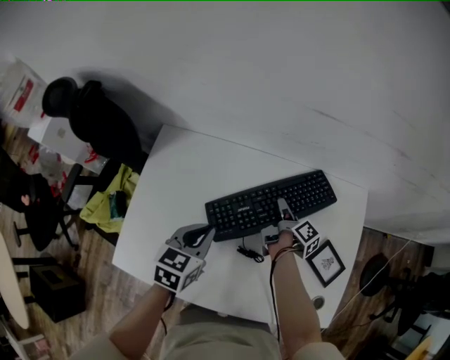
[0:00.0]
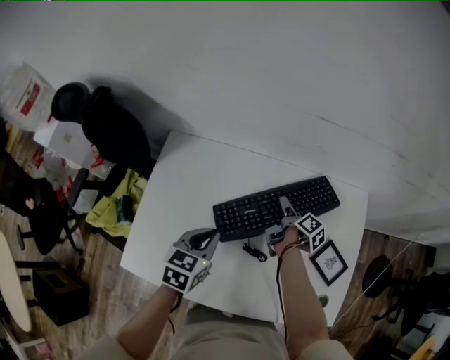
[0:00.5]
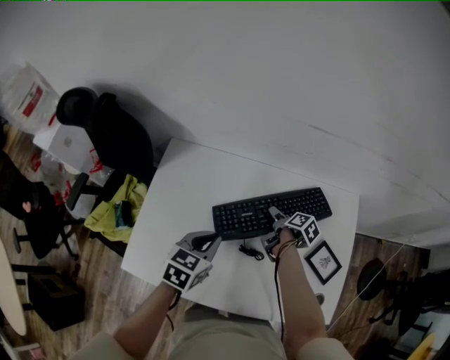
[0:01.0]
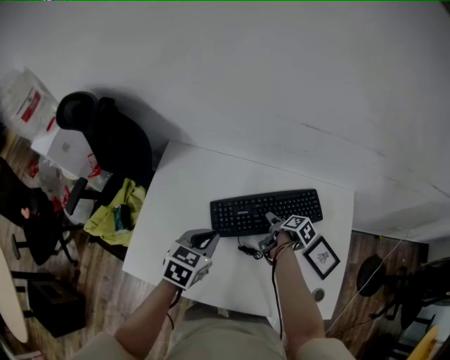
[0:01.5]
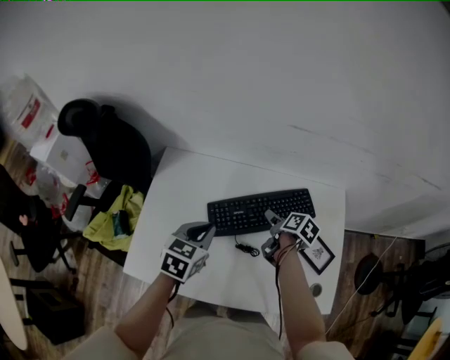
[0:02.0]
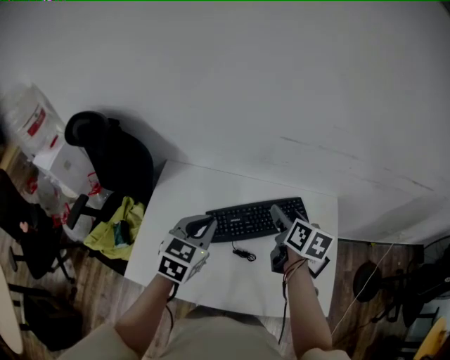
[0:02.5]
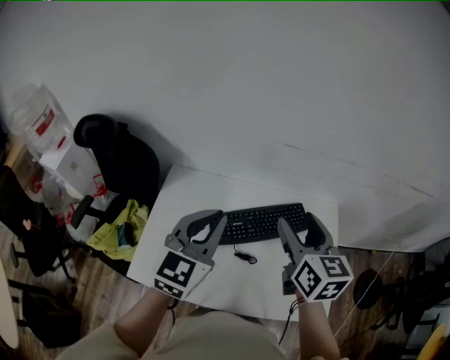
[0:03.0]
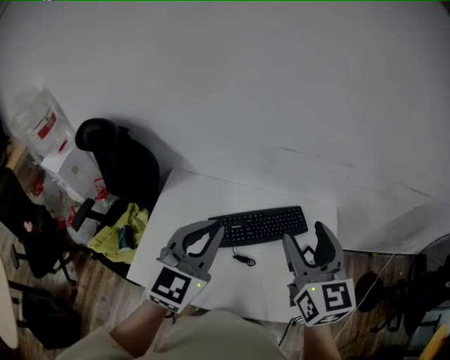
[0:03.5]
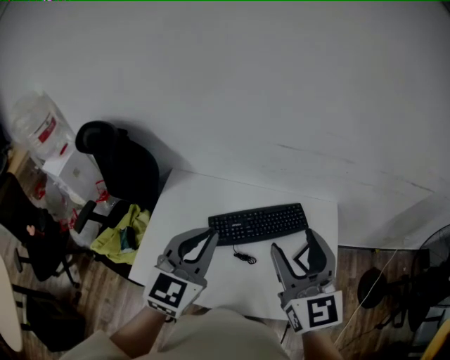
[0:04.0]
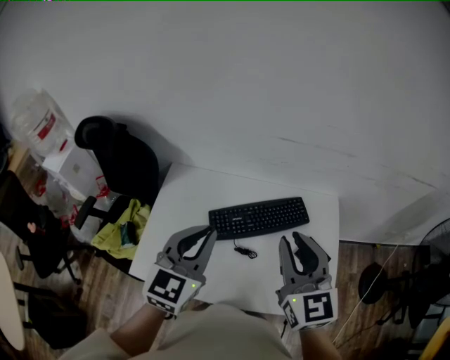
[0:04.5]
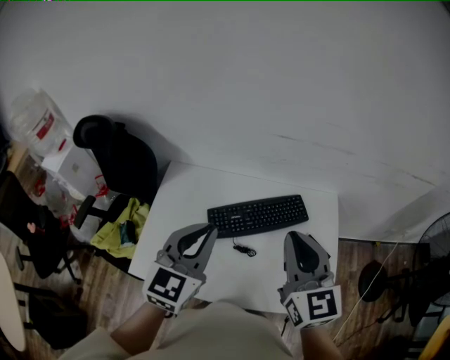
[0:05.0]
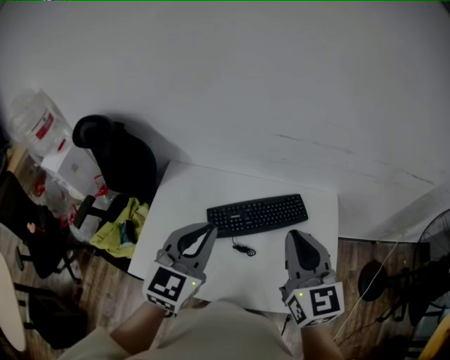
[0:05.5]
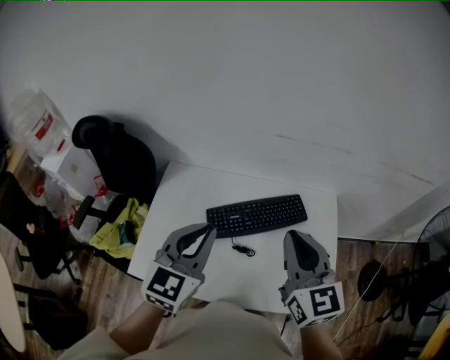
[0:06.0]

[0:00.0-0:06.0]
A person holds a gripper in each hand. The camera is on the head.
0:00.0 to 0:02.0: The right gripper is displaced upward and backward by some 10 cm, changes its angle by some 40 degrees, and opens its fingers. The left gripper is displaced upward by approximately 5 cm.
0:02.0 to 0:04.0: The left gripper is displaced upward by approximately 20 cm, and turns by about 30 degrees, while the right gripper shifts approximately 40 cm upward and backward, and twists roughly 70 degrees counterclockwise, seen from behind.
0:04.0 to 0:06.0: The right gripper closes.

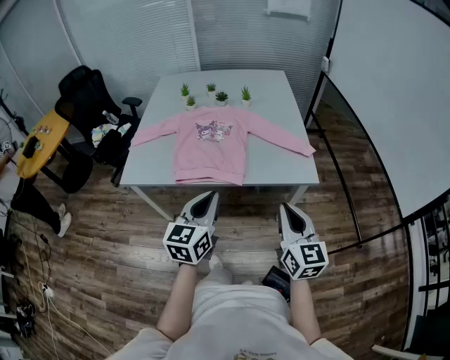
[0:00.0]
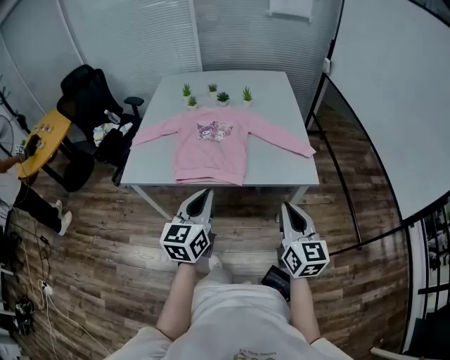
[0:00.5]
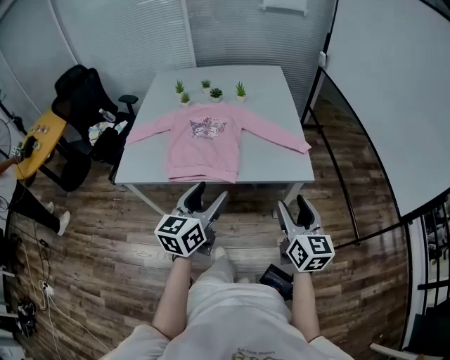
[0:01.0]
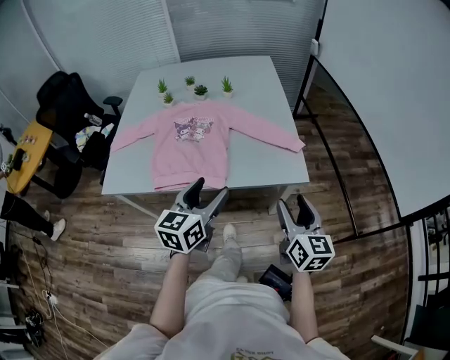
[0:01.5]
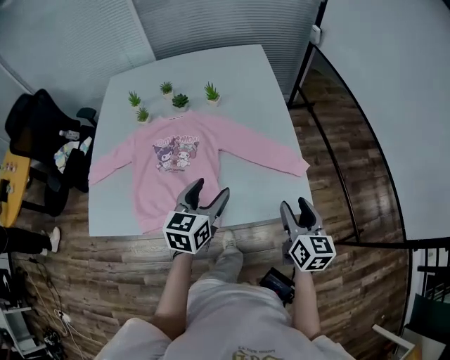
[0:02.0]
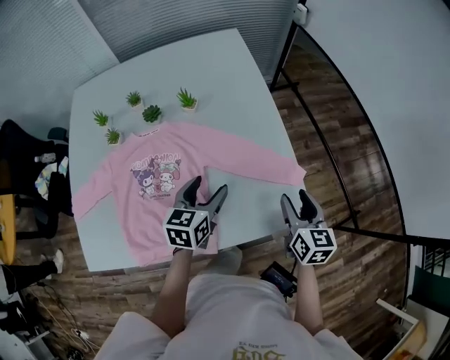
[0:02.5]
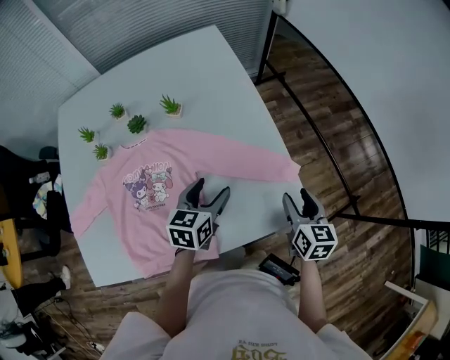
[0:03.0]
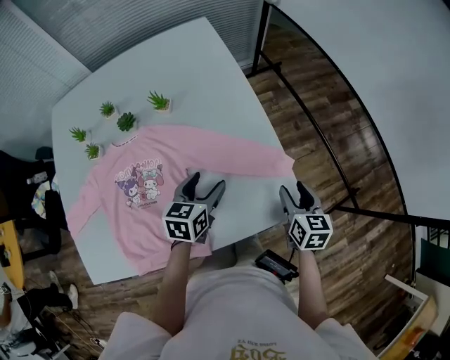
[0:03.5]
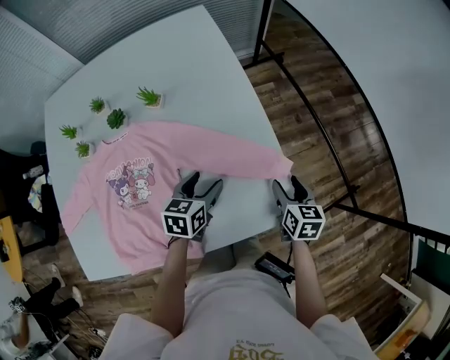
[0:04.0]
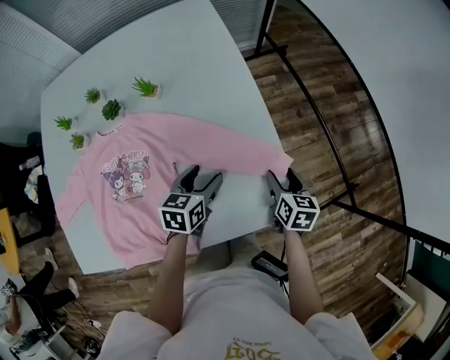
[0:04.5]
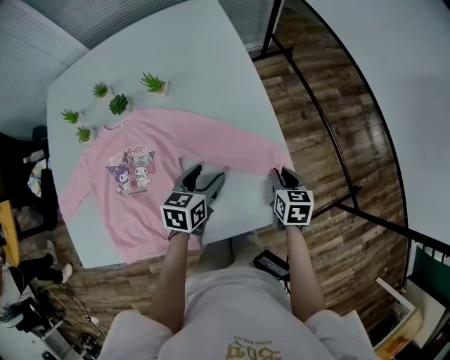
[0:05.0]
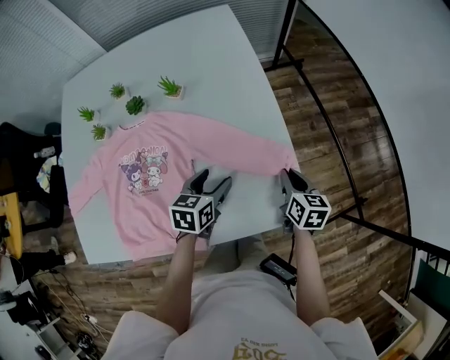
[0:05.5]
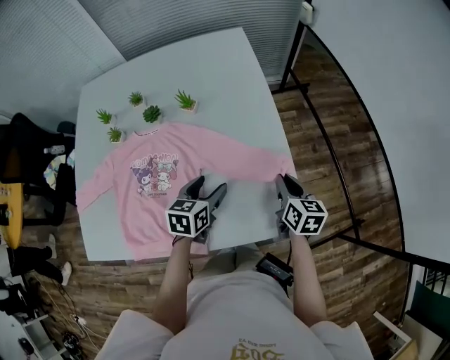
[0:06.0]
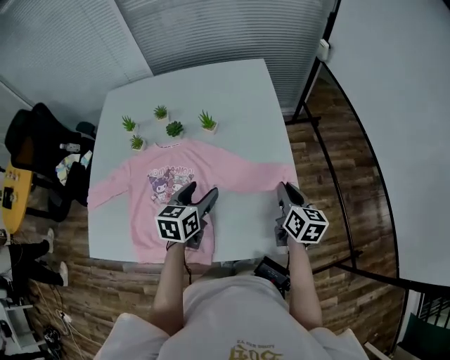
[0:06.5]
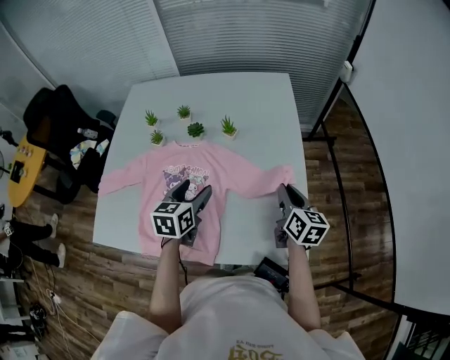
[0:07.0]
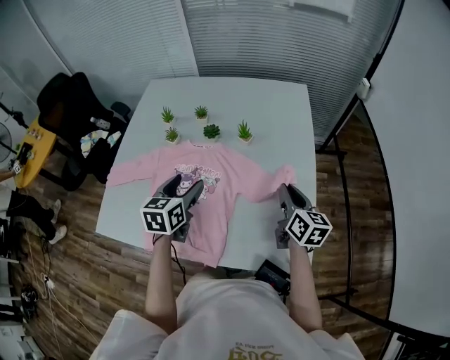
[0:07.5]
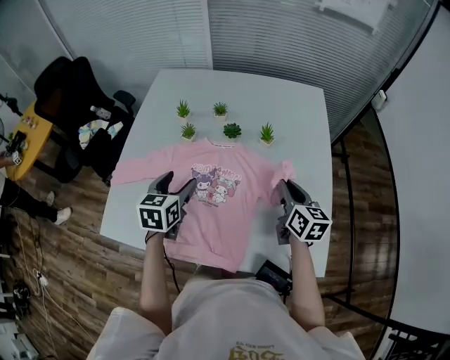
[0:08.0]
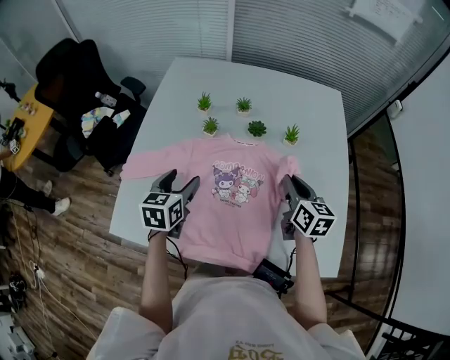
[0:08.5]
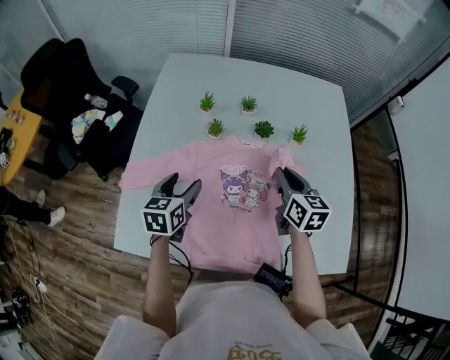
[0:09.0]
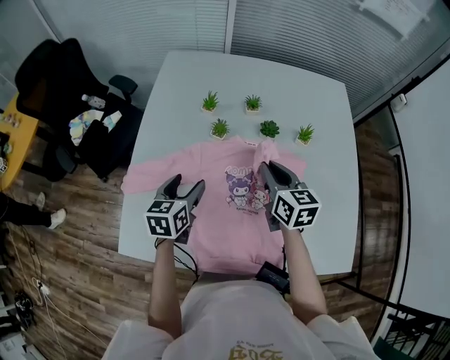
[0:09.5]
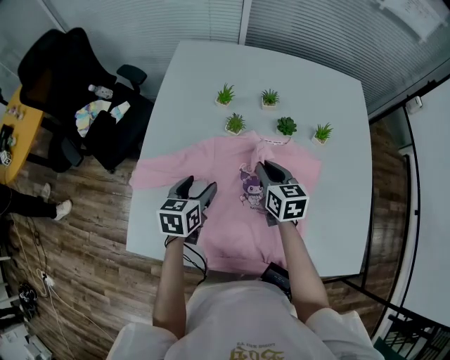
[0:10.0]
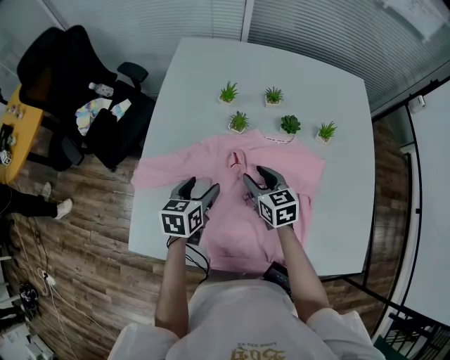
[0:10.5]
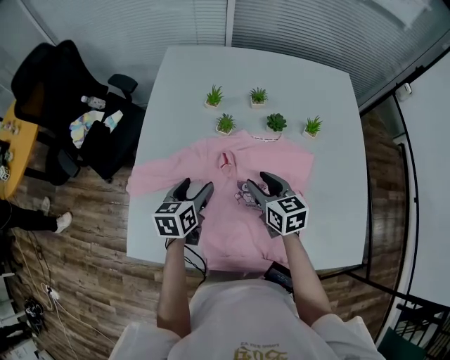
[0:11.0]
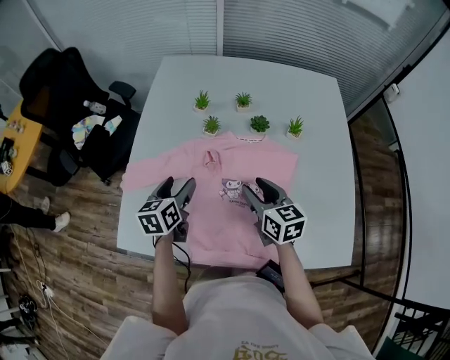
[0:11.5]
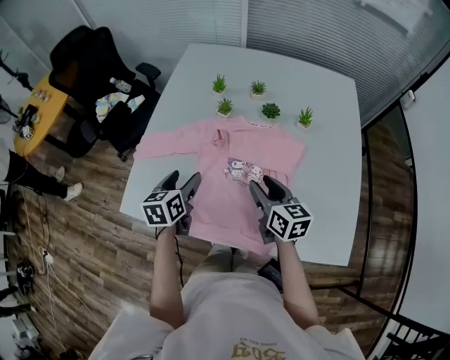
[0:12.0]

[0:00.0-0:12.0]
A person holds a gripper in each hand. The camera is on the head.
0:00.0 to 0:02.0: The left gripper goes some 30 cm forward, and opens. Meanwhile the right gripper travels forward and downward by roughly 30 cm, turns by some 20 degrees, and opens.
0:02.0 to 0:04.0: The grippers both shift forward and downward by roughly 20 cm. The left gripper changes its angle by some 20 degrees; the right gripper turns by about 20 degrees.
0:04.0 to 0:06.0: The right gripper goes some 10 cm upward and to the left, and closes up. Meanwhile the left gripper ends up about 5 cm from where it was.
0:06.0 to 0:08.0: The left gripper is displaced to the left by some 30 cm, and swivels some 30 degrees. The right gripper is displaced to the left, upward and forward by some 25 cm, and turns by about 20 degrees.
0:08.0 to 0:10.0: The right gripper goes some 30 cm to the left; the left gripper goes approximately 20 cm to the left and downward.
0:10.0 to 0:12.0: The left gripper is displaced backward and upward by roughly 10 cm. The right gripper is displaced backward by approximately 15 cm, and opens up.

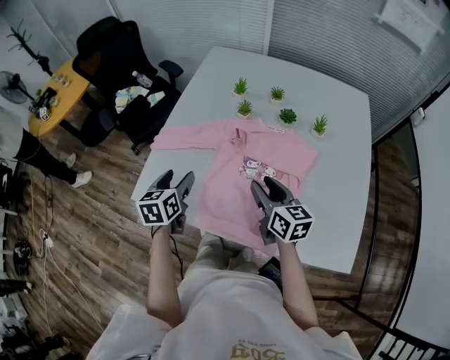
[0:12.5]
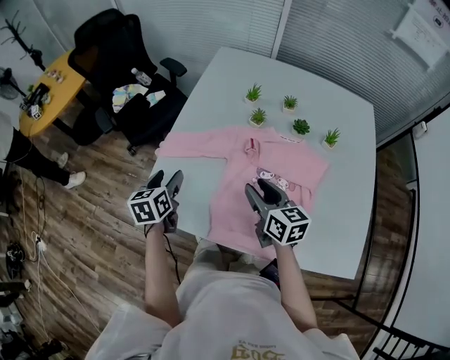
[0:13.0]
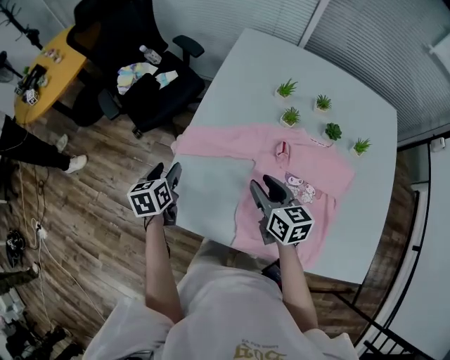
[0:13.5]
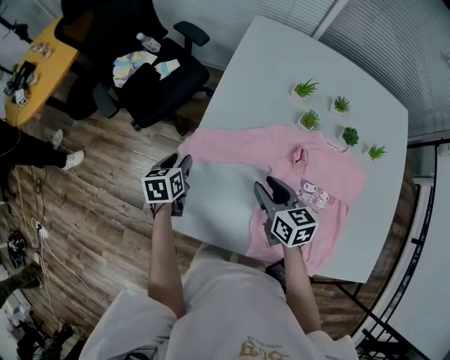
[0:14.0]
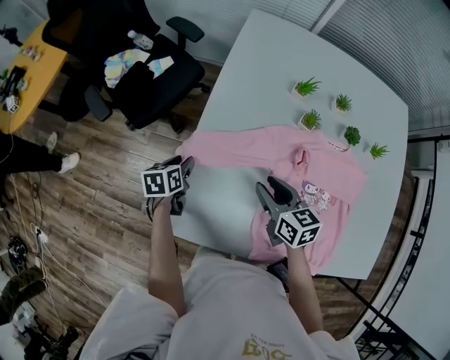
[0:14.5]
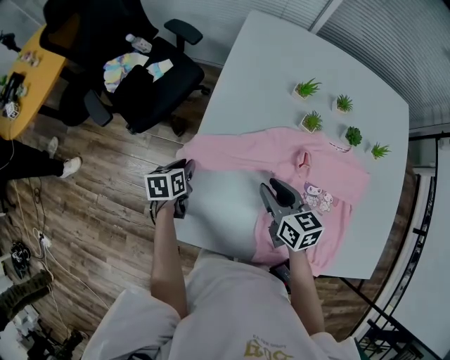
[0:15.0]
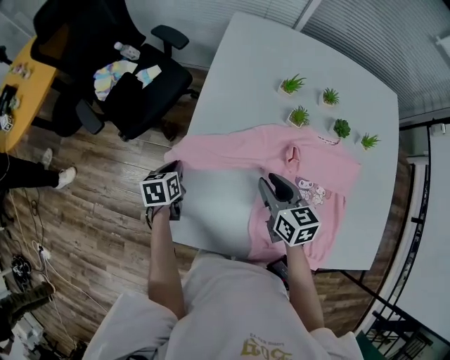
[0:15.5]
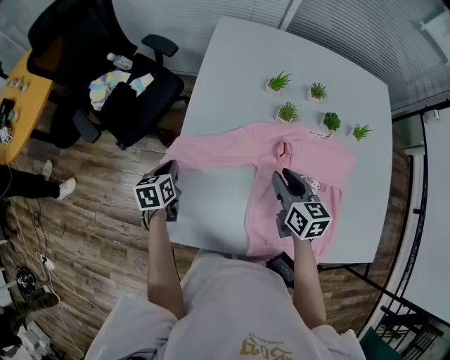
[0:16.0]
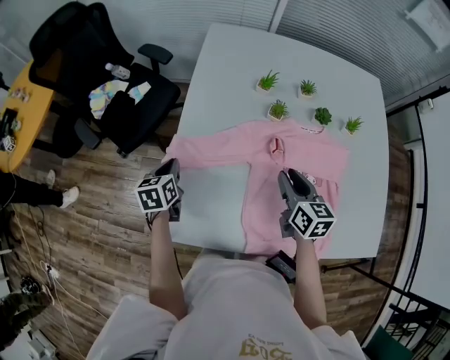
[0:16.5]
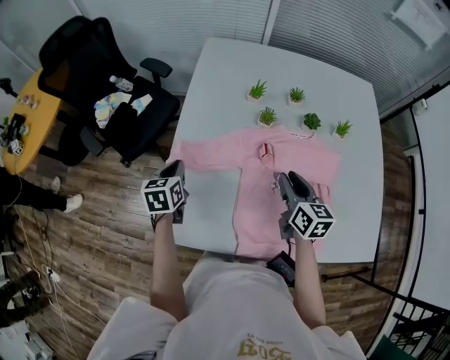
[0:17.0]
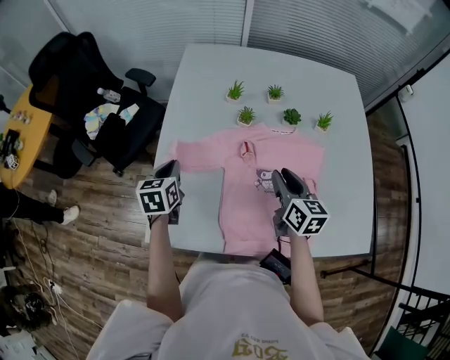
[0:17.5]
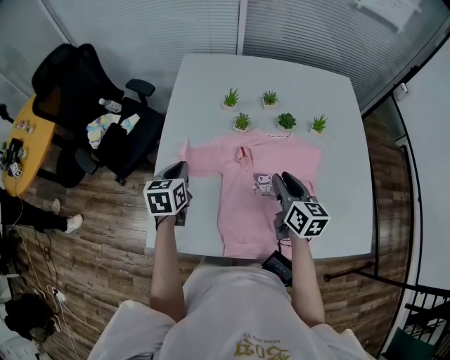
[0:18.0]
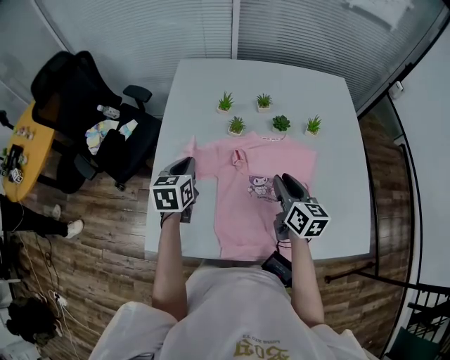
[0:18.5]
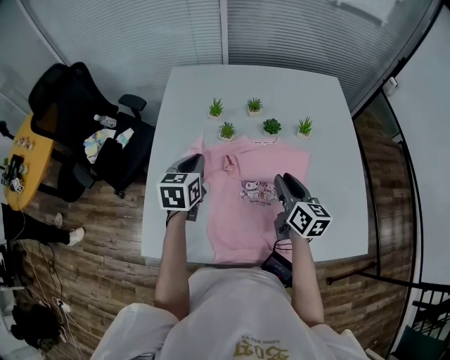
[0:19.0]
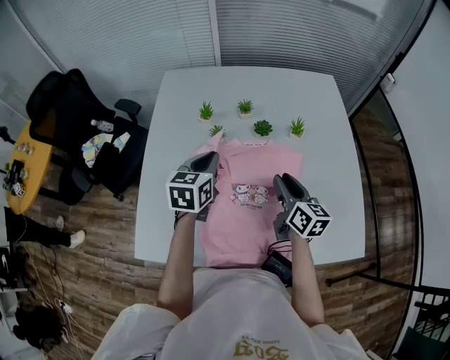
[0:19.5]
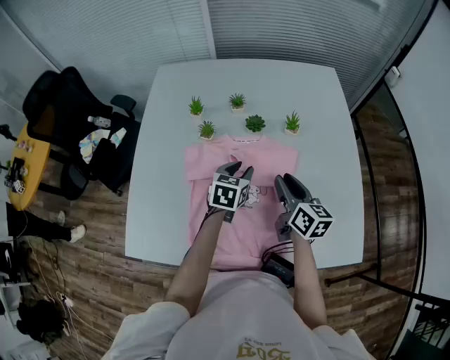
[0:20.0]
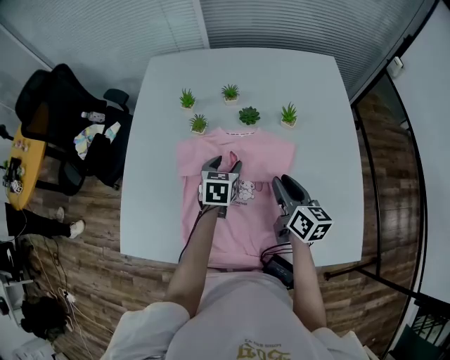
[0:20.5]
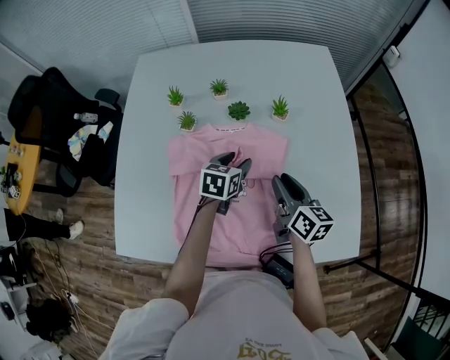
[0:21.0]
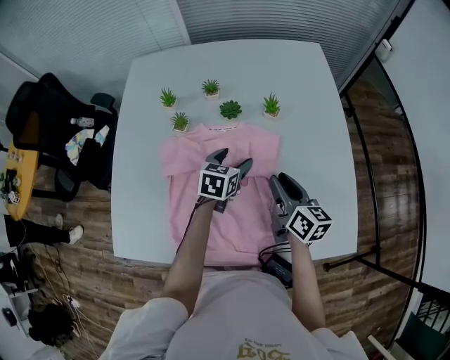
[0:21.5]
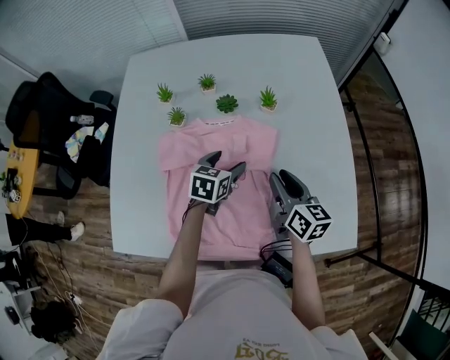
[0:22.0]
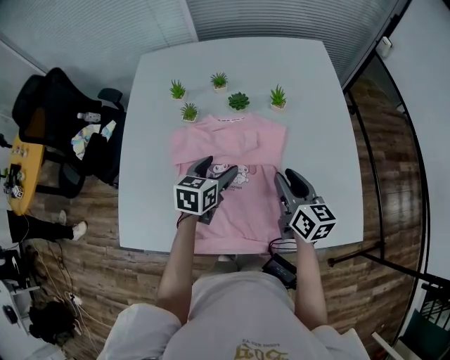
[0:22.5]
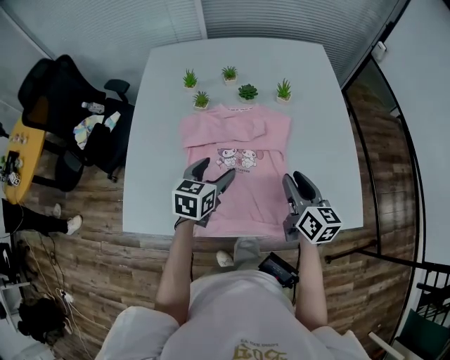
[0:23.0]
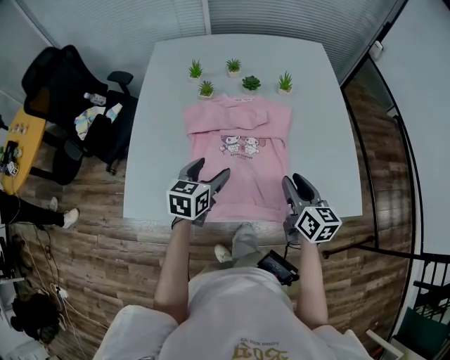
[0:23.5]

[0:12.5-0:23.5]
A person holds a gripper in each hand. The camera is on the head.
0:12.5 to 0:14.5: The right gripper travels to the left, forward and downward by roughly 30 cm; the left gripper moves forward, downward and to the left, some 35 cm, and turns by about 20 degrees.
0:14.5 to 0:16.0: The left gripper closes up. The right gripper heads to the right, covering roughly 10 cm.
0:16.0 to 0:18.0: Both grippers move to the right and upward, roughly 20 cm.
0:18.0 to 0:20.0: The left gripper is displaced to the right by some 35 cm, swivels some 20 degrees, and opens its fingers; the right gripper shifts about 15 cm to the right.
0:20.0 to 0:21.5: The two grippers go approximately 5 cm to the right. The left gripper opens.
0:21.5 to 0:23.5: The left gripper travels backward and to the left by some 25 cm. Meanwhile the right gripper is displaced backward by about 15 cm.
